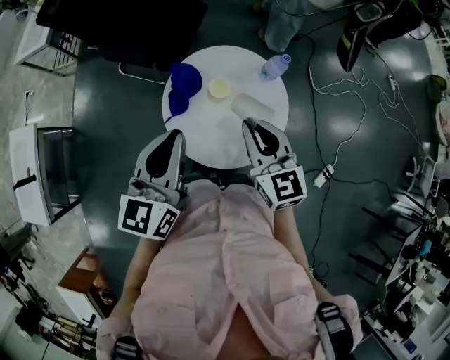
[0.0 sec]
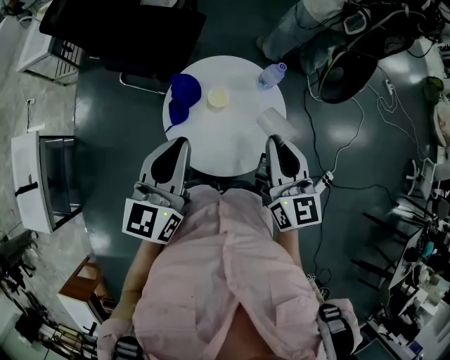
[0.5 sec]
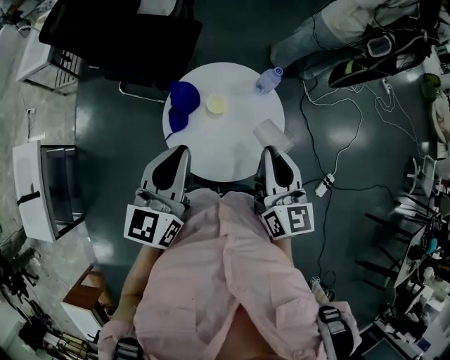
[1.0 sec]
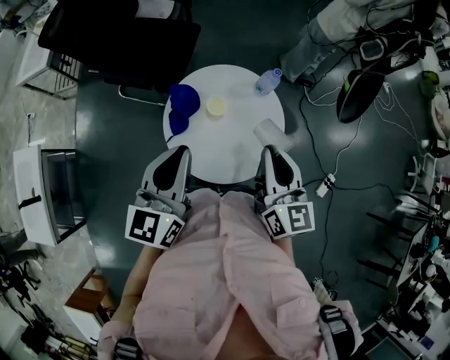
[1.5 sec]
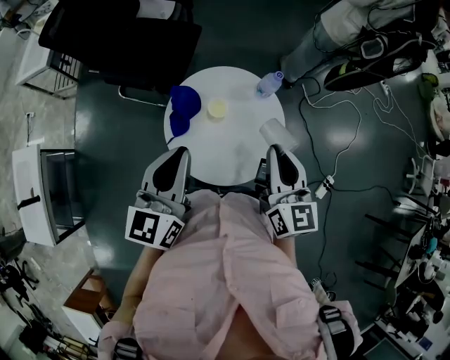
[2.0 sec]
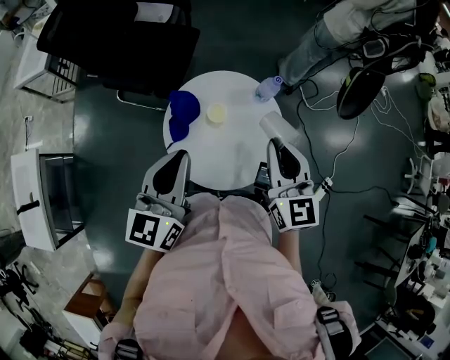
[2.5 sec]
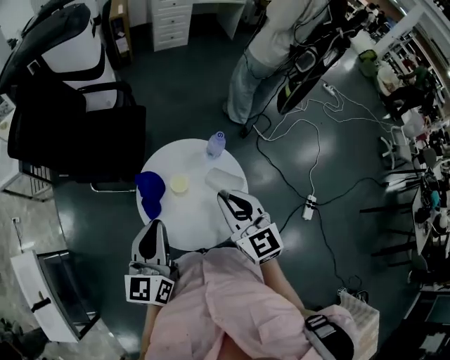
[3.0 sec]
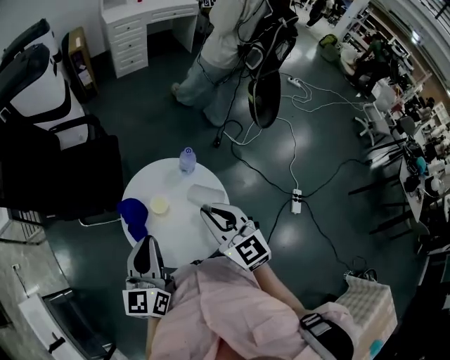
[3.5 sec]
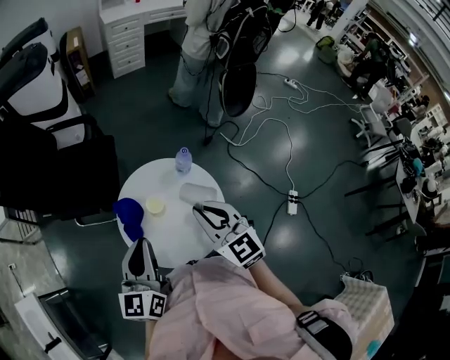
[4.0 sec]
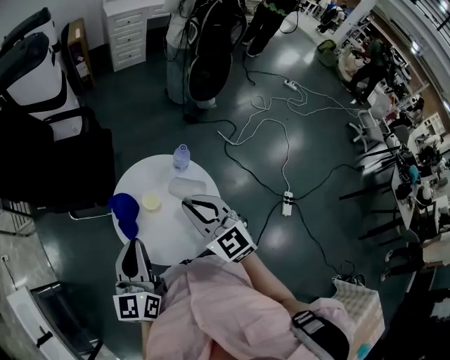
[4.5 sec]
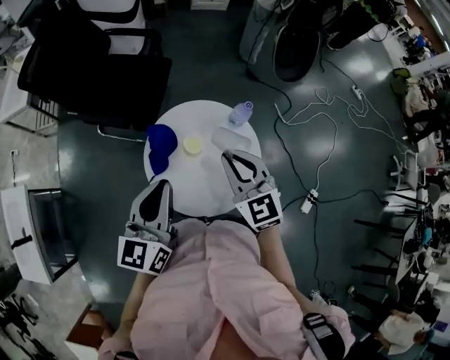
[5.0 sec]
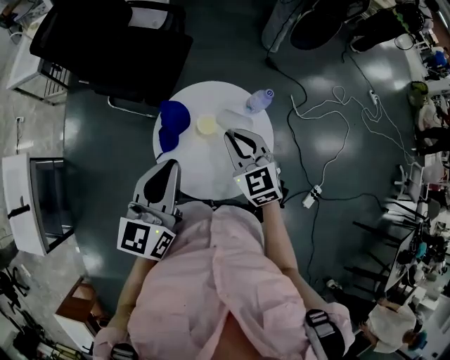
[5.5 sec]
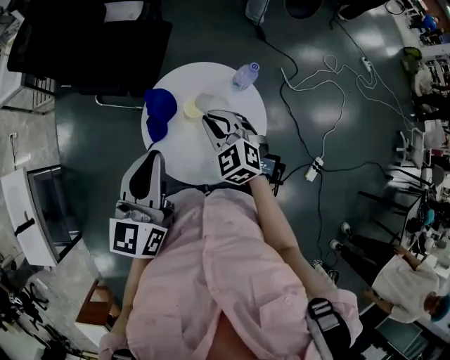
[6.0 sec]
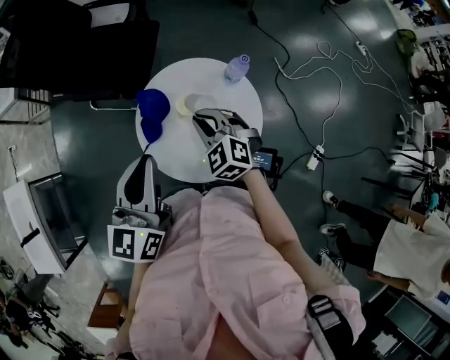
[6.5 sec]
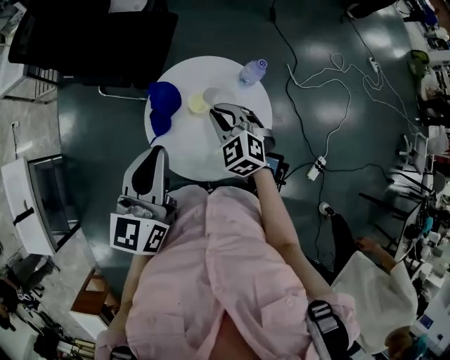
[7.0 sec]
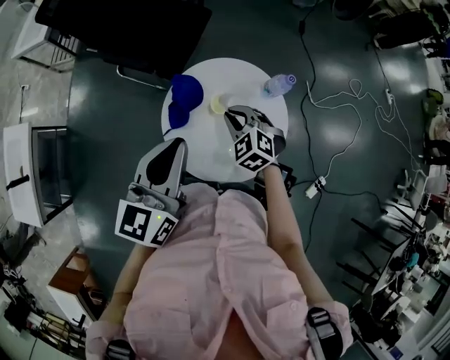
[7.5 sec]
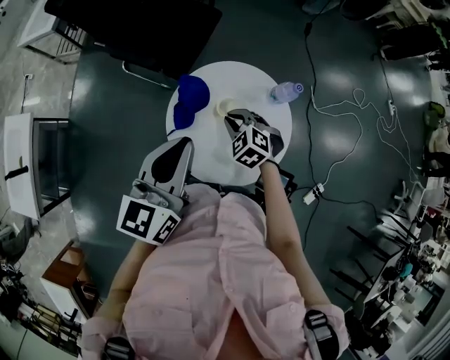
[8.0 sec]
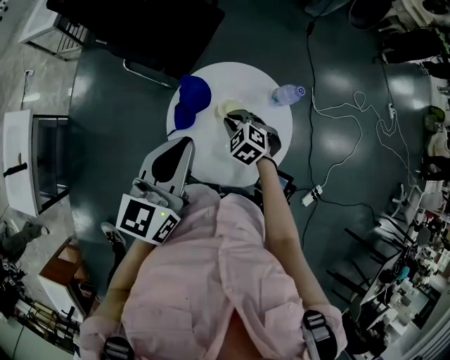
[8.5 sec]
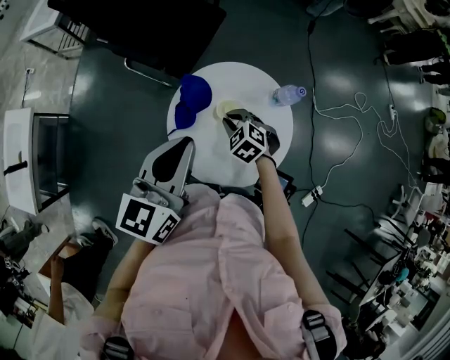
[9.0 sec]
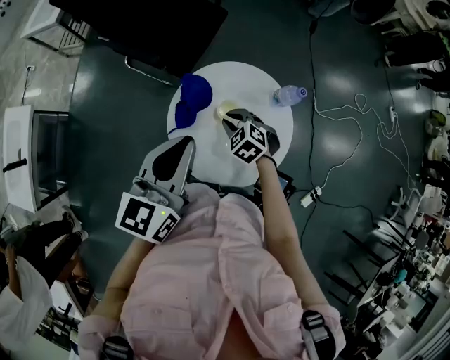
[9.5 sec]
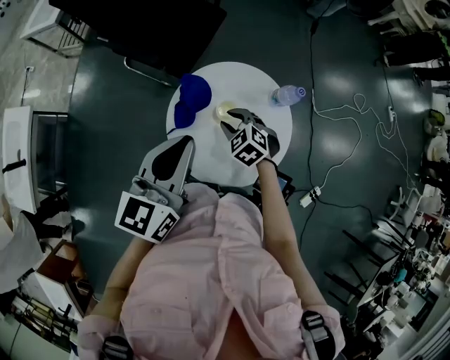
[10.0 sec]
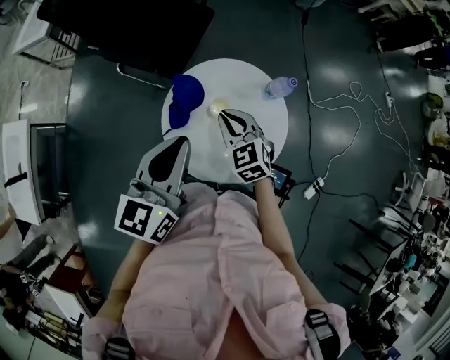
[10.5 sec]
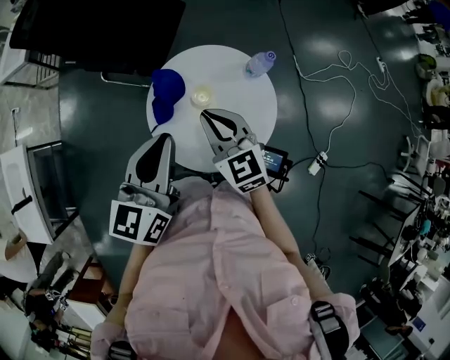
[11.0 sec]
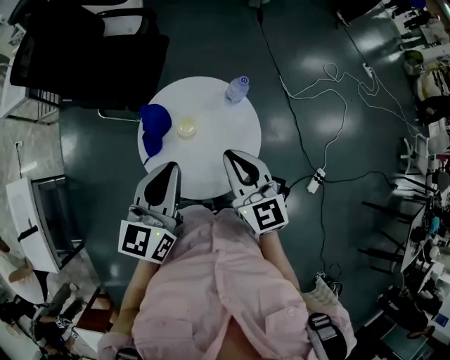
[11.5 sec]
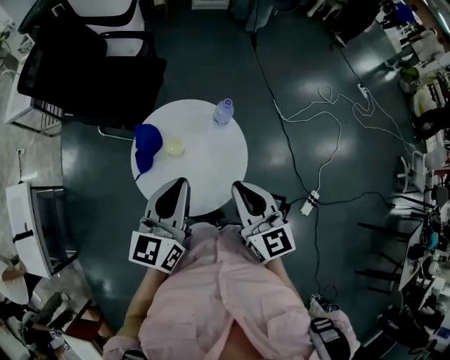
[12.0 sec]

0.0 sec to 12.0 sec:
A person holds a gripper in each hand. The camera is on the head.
0.0 sec to 2.0 sec: The right gripper shifts roughly 5 cm to the right, and turns by about 20 degrees.
2.0 sec to 4.0 sec: There are only small adjustments of the grippers.
4.0 sec to 6.0 sec: The right gripper moves downward, to the left and forward, about 15 cm, and turns by roughly 40 degrees.
6.0 sec to 8.0 sec: The right gripper goes about 10 cm downward, and turns by approximately 20 degrees.
8.0 sec to 10.0 sec: The grippers move only a little.
10.0 sec to 12.0 sec: The right gripper shifts approximately 30 cm upward, to the right and backward, points its fingers roughly 50 degrees further upward, and closes its fingers. Meanwhile the left gripper goes roughly 15 cm to the right.

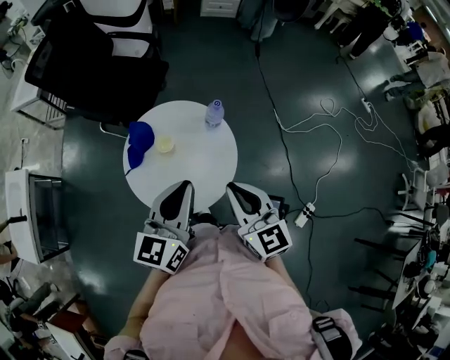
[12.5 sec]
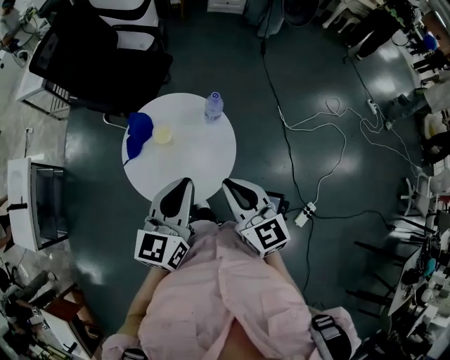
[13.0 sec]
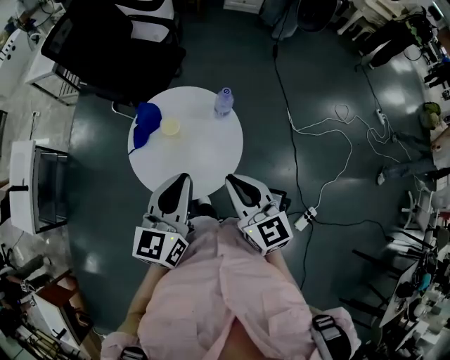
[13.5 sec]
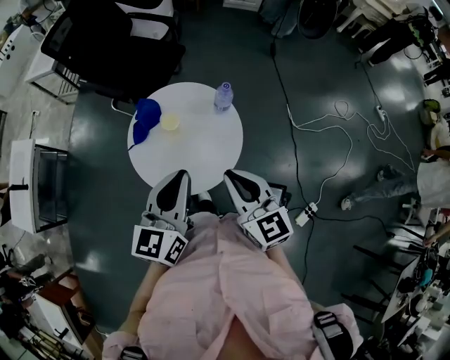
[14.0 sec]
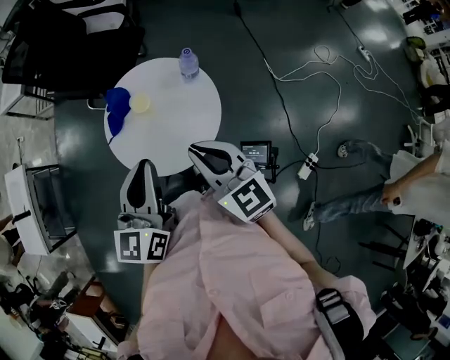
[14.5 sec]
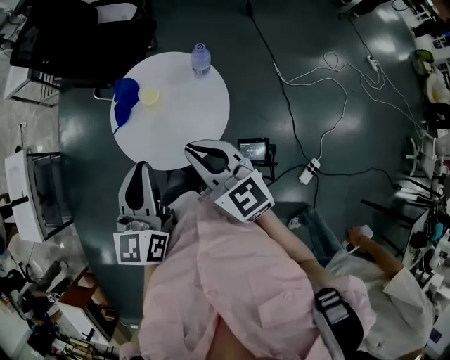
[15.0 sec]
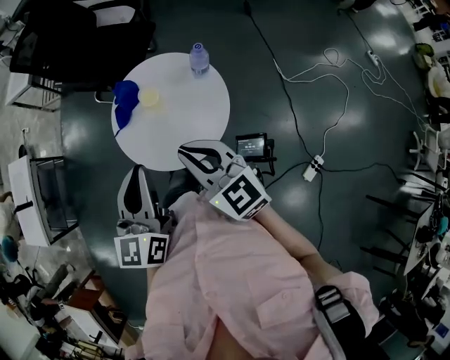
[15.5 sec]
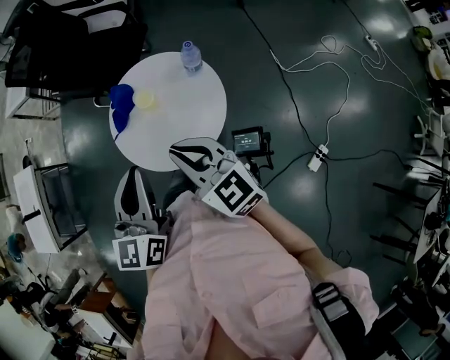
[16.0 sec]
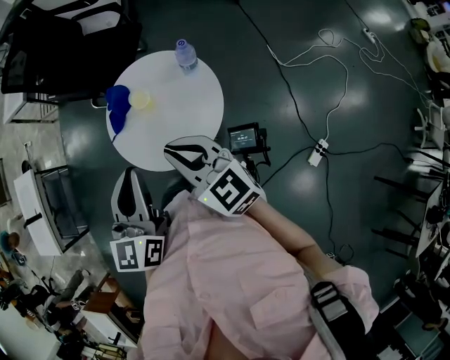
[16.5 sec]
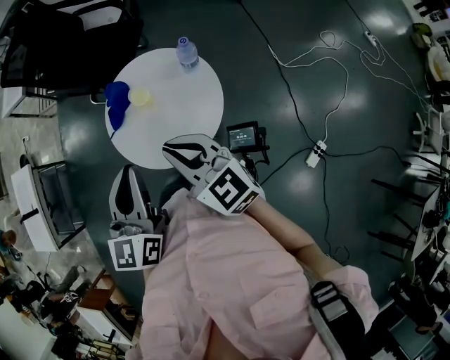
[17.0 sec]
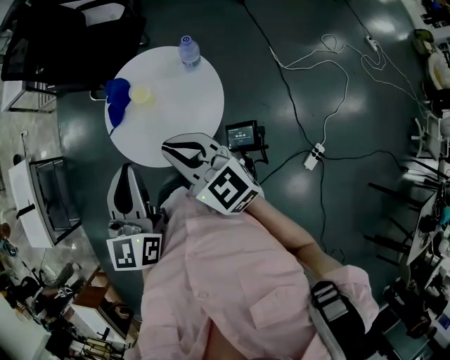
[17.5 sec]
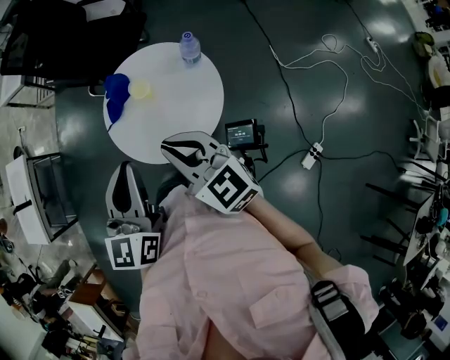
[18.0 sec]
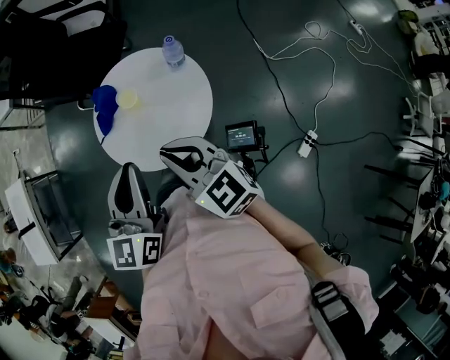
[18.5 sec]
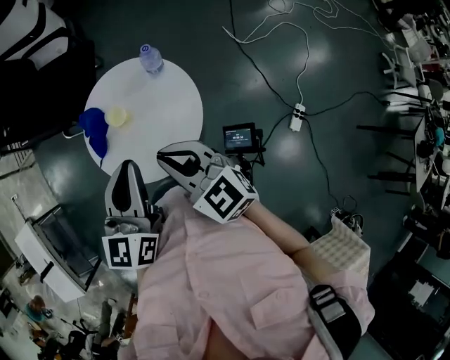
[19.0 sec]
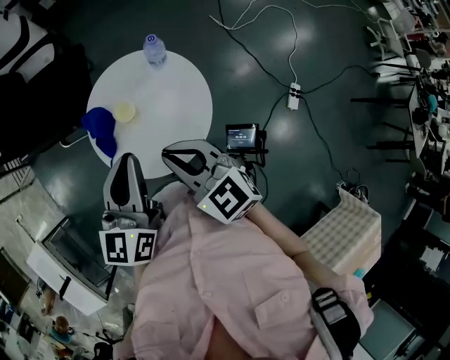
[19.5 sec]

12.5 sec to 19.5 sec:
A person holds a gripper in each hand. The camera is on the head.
12.5 sec to 14.5 sec: The left gripper moves approximately 5 cm.
14.5 sec to 16.0 sec: The right gripper is displaced to the left by about 5 cm.
16.0 sec to 17.5 sec: Neither gripper changes place.
17.5 sec to 19.5 sec: The left gripper ends up roughly 10 cm from where it was, and swivels roughly 30 degrees, while the right gripper ends up roughly 5 cm from where it was, and rotates some 30 degrees.

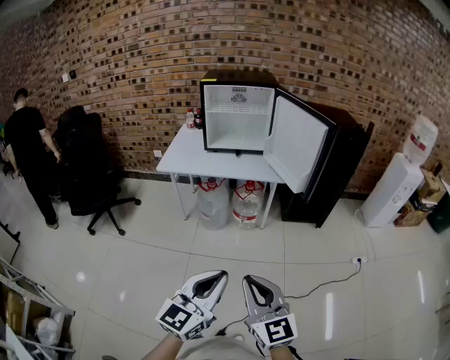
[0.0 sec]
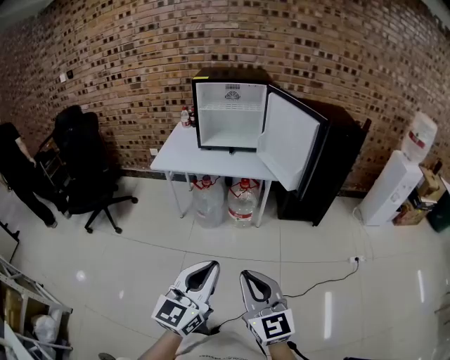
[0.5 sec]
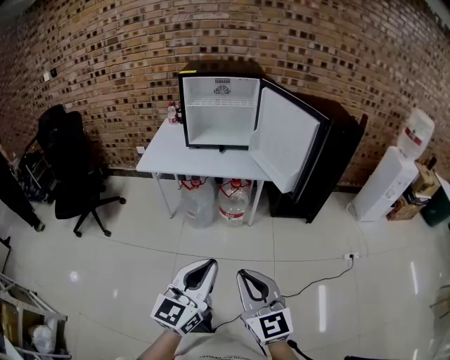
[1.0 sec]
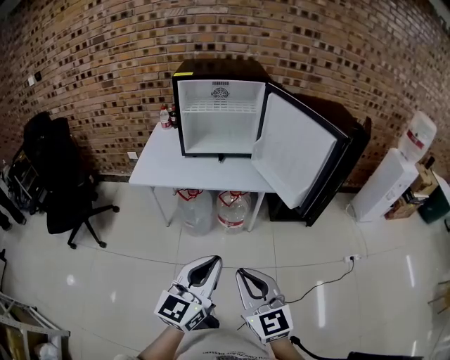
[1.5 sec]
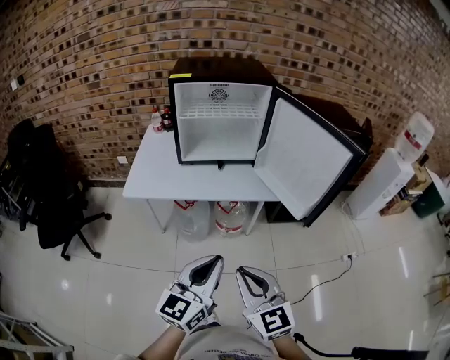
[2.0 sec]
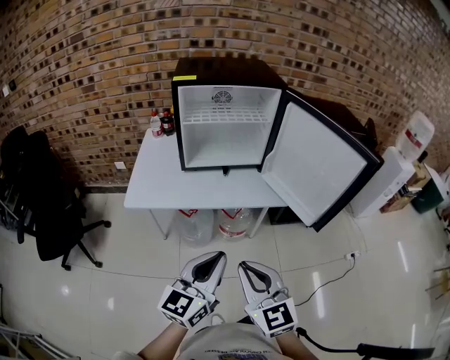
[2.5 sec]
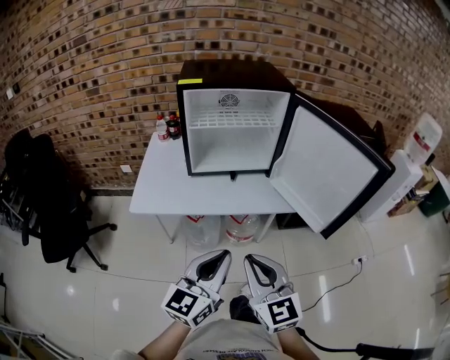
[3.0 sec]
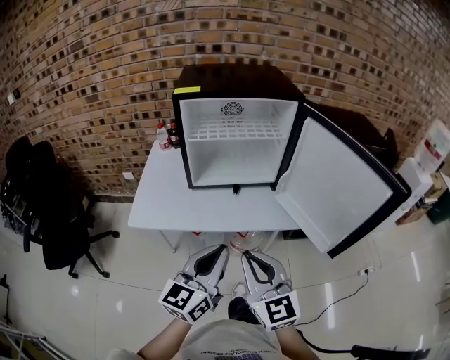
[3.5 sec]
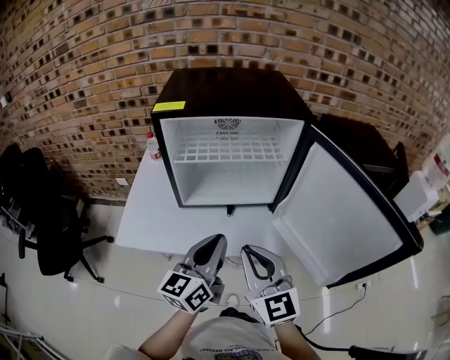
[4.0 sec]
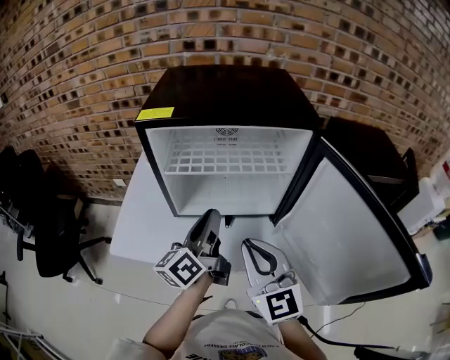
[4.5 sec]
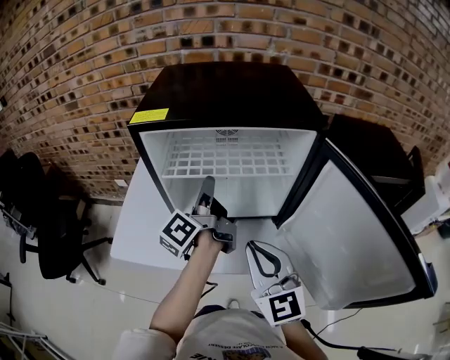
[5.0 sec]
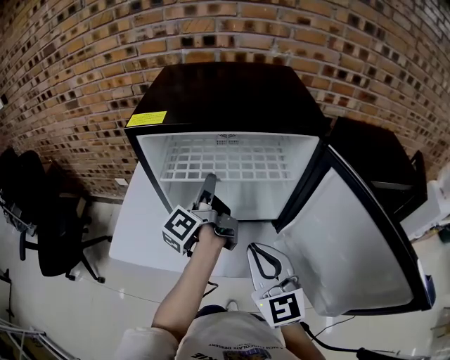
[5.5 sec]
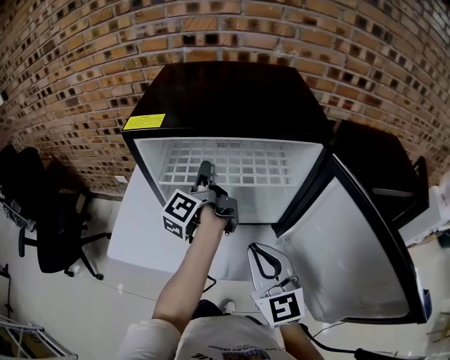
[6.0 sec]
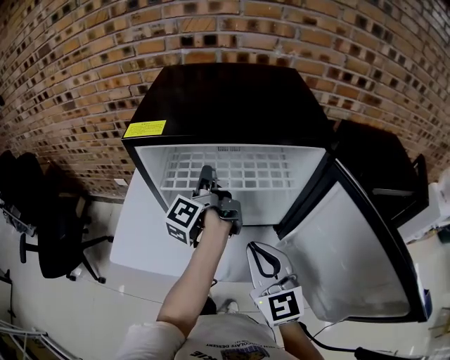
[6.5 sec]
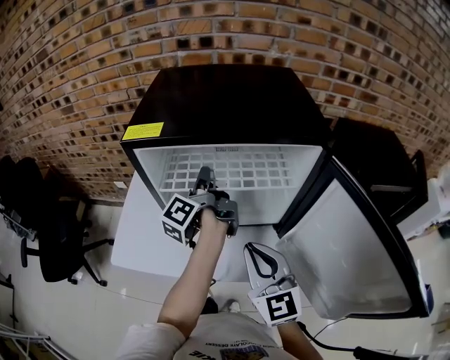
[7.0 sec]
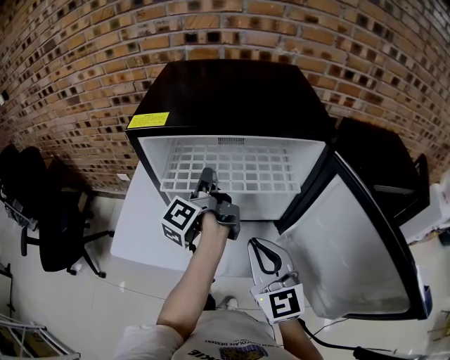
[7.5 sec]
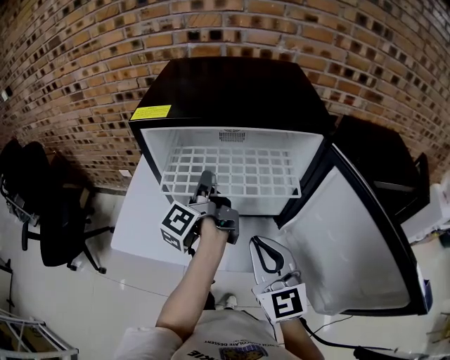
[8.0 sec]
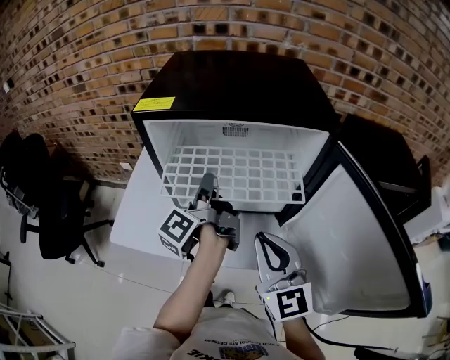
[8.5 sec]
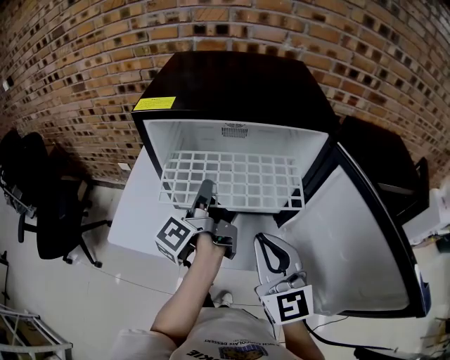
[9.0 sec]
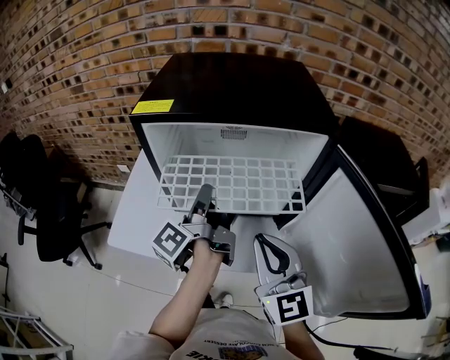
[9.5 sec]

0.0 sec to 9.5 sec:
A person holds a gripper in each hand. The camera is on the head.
0.0 sec to 2.0 sec: The grippers both shift forward by some 25 cm.
2.0 sec to 4.0 sec: Both grippers travel together forward, approximately 30 cm.
4.0 sec to 5.5 sec: The right gripper goes approximately 10 cm forward, while the left gripper heads forward, covering about 25 cm, rotates around the line of its fingers by about 50 degrees, counterclockwise from behind, and opens up.
5.5 sec to 7.5 sec: The left gripper closes its fingers.
7.5 sec to 9.5 sec: The left gripper travels backward by some 10 cm.
